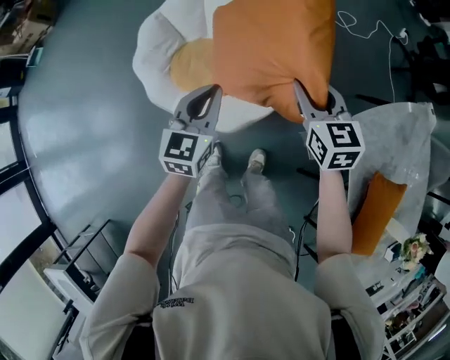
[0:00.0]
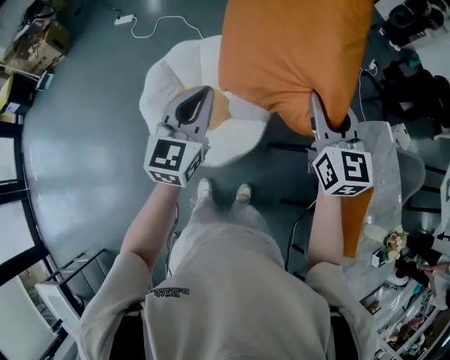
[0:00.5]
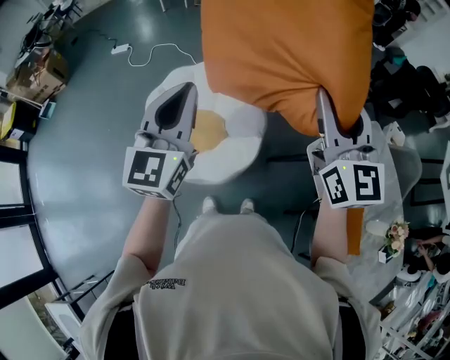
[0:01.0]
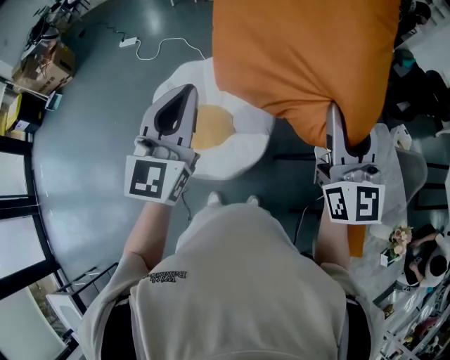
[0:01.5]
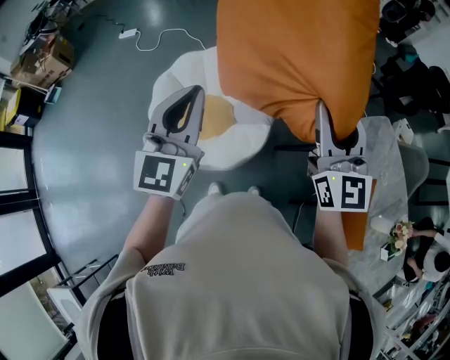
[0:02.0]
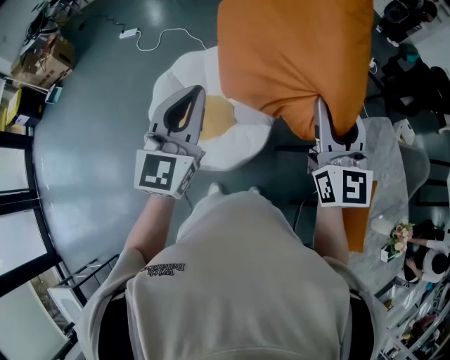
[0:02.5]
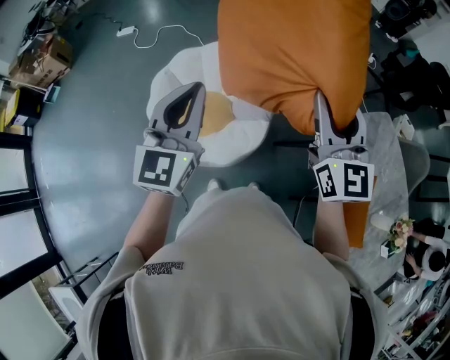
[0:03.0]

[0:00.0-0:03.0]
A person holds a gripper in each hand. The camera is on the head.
0:00.0 to 0:01.5: The grippers both shift upward by some 40 cm. The left gripper swivels roughly 30 degrees. Meanwhile the right gripper tilts its fingers some 40 degrees upward.
0:01.5 to 0:03.0: The right gripper heads downward, covering some 5 cm; the left gripper moves roughly 5 cm.

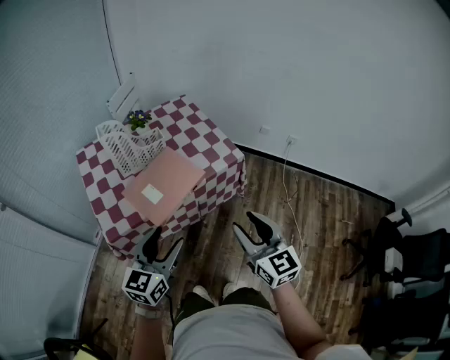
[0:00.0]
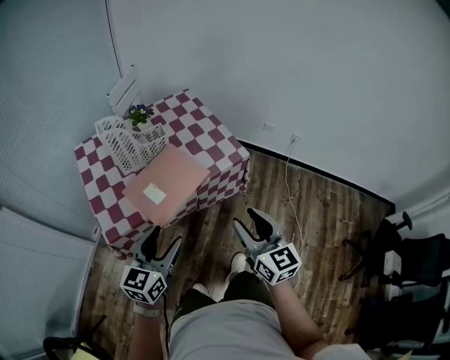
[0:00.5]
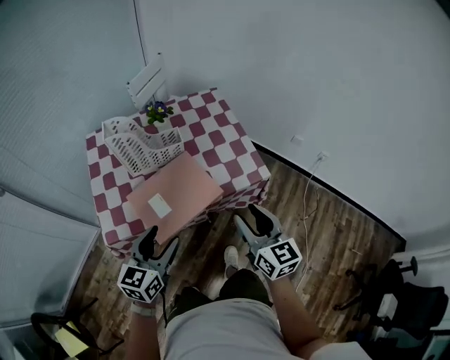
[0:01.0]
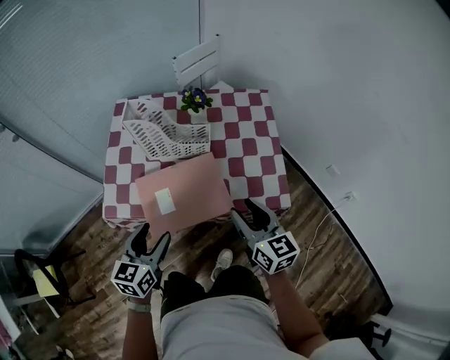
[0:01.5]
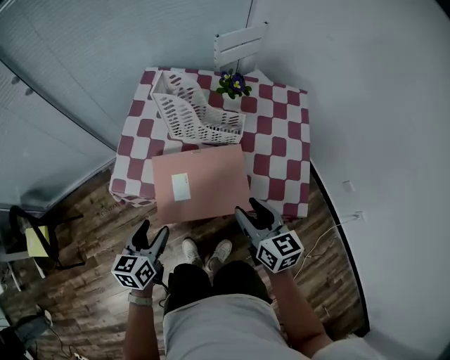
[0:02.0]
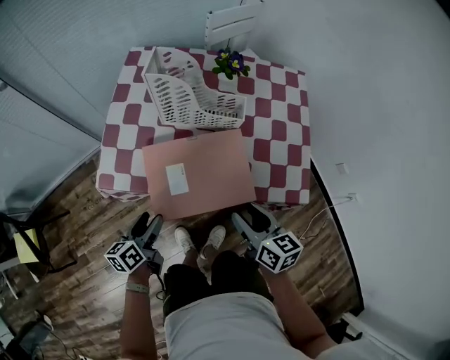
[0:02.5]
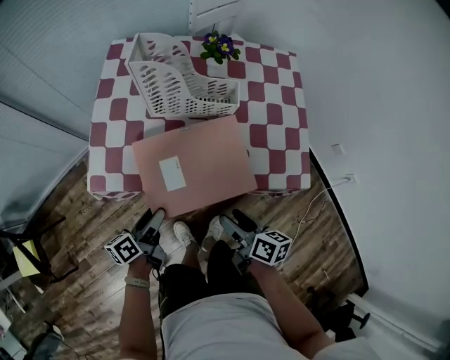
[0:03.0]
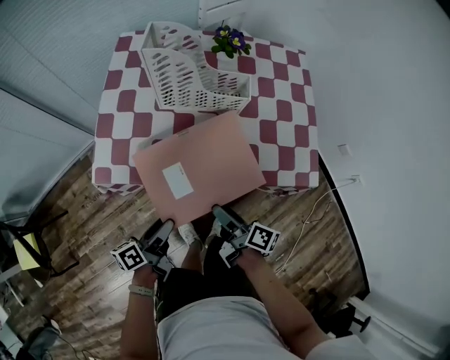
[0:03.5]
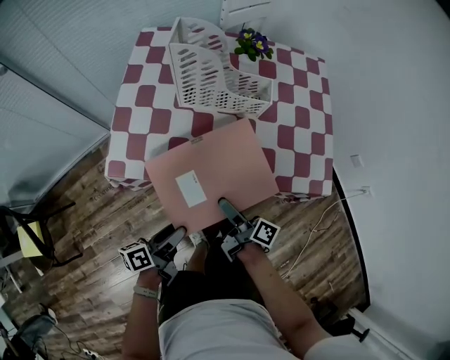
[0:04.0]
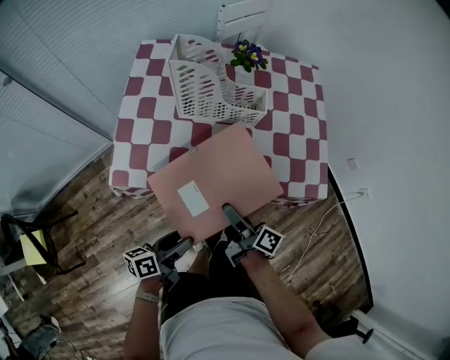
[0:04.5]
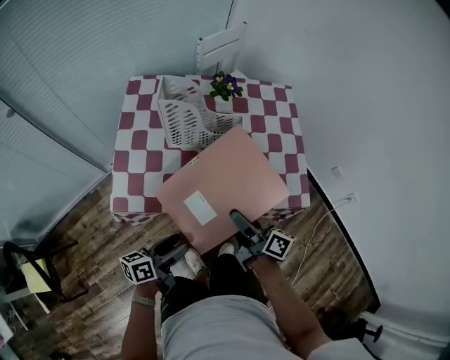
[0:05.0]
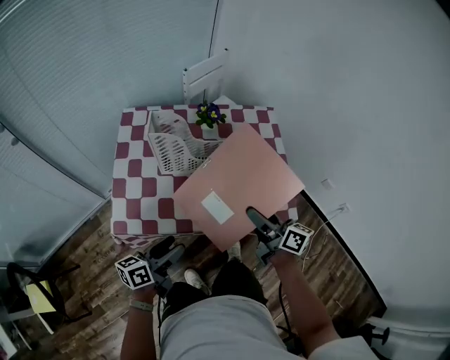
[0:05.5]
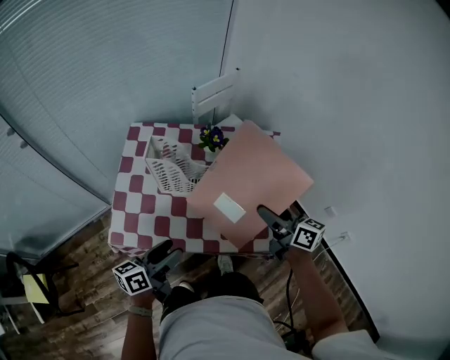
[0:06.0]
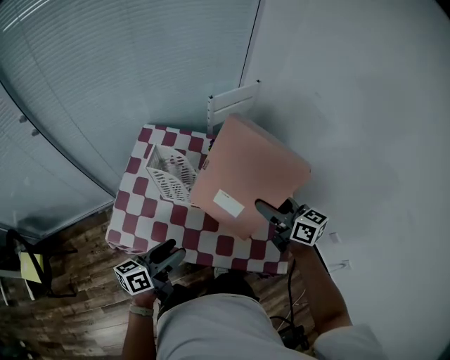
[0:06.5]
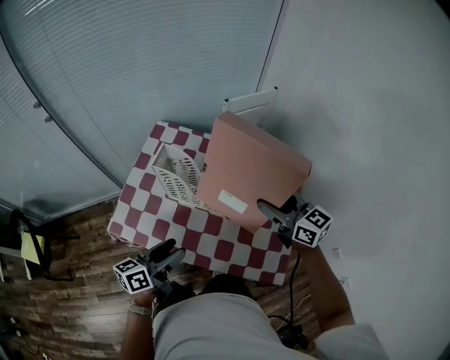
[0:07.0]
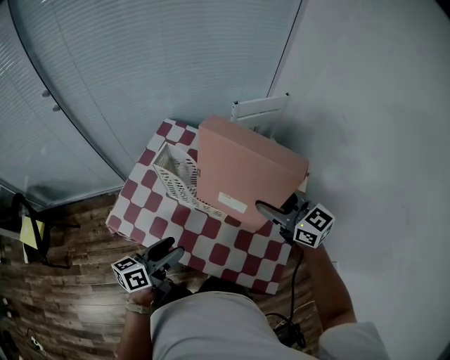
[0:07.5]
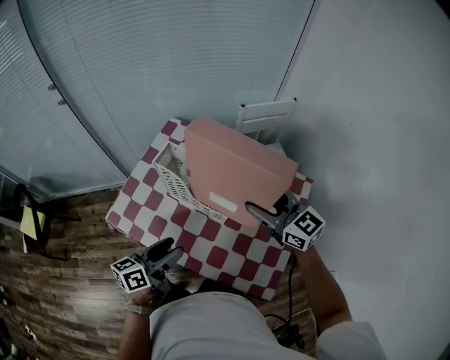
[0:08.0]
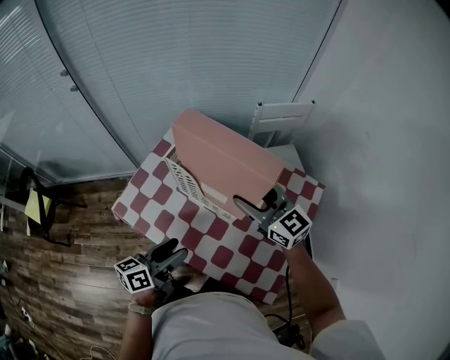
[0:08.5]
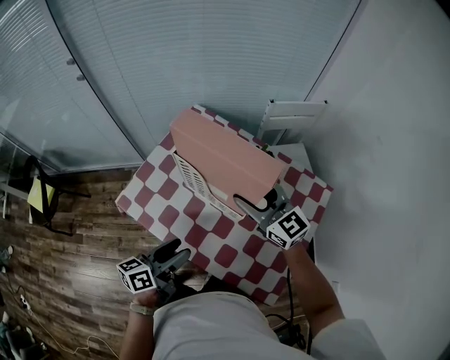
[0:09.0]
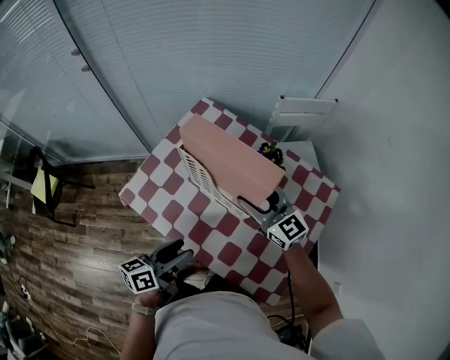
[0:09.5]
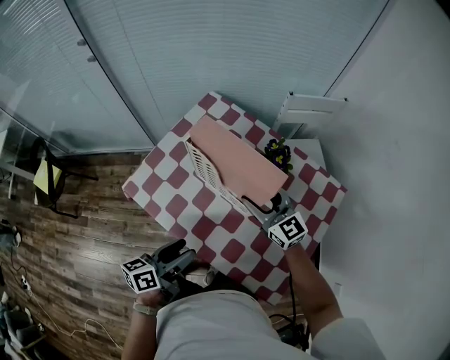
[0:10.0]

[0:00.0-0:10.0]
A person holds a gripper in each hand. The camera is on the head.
0:00.0 to 0:02.0: The right gripper ends up approximately 30 cm from where it was, and turns by some 40 degrees, while the left gripper is displaced downward by some 15 cm, and turns by roughly 60 degrees.
0:02.0 to 0:04.0: The left gripper shifts some 10 cm downward, and turns by some 50 degrees, while the right gripper shifts approximately 20 cm downward and to the left, rotates around the line of its fingers by some 70 degrees, clockwise from behind, and opens its fingers.
0:04.0 to 0:06.0: The right gripper is displaced upward, forward and to the right by approximately 35 cm, and rotates around the line of its fingers by about 50 degrees, counterclockwise from behind. Meanwhile the left gripper heads upward and forward, covering about 25 cm, and rotates approximately 30 degrees.
0:06.0 to 0:08.0: The right gripper ends up about 15 cm from where it was, and rotates about 50 degrees. The left gripper ends up about 10 cm from where it was, and changes its angle by about 20 degrees.
0:08.0 to 0:10.0: The left gripper moves roughly 5 cm. The right gripper is displaced downward and to the left by approximately 15 cm.

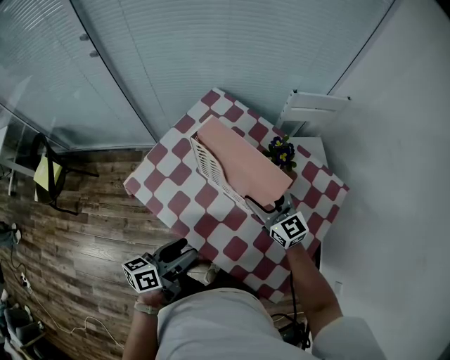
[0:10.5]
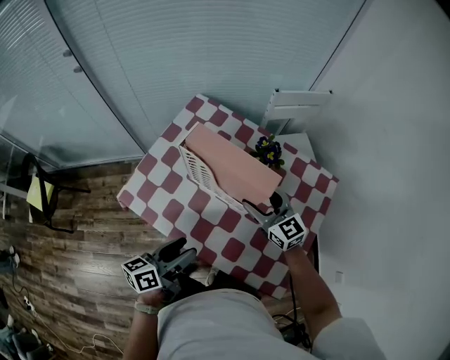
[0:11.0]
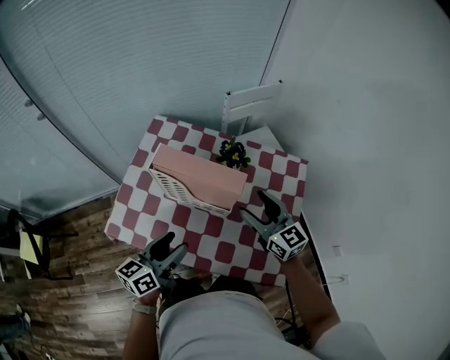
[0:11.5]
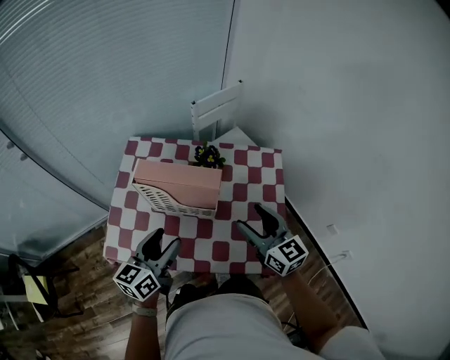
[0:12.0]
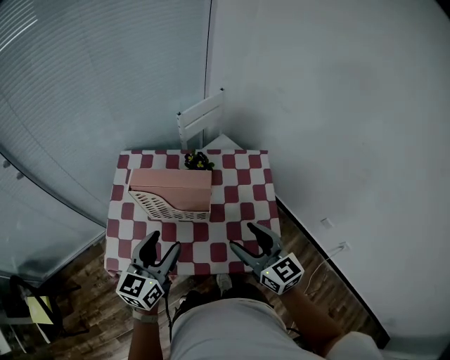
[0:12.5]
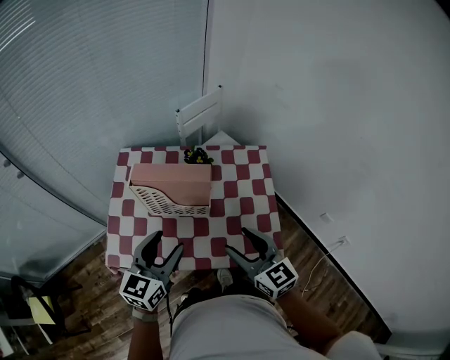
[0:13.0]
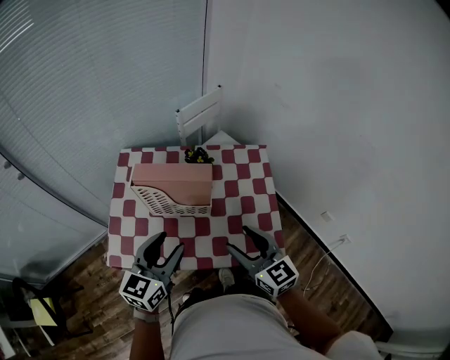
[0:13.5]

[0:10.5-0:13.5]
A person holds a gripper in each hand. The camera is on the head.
0:10.5 to 0:12.0: The right gripper shifts some 20 cm backward, upward and to the right, and swivels roughly 40 degrees, while the left gripper goes roughly 10 cm upward and forward, and rotates roughly 30 degrees.
0:12.0 to 0:13.5: The left gripper shifts by approximately 5 cm. Meanwhile the right gripper heads backward, covering about 10 cm.

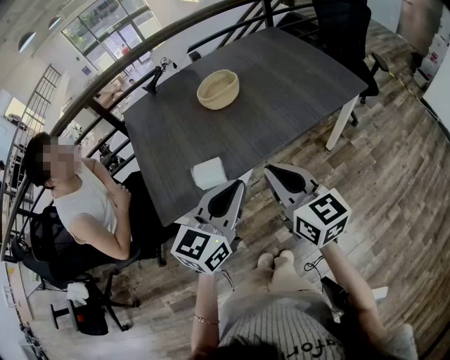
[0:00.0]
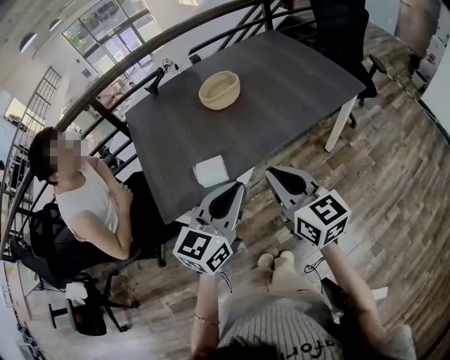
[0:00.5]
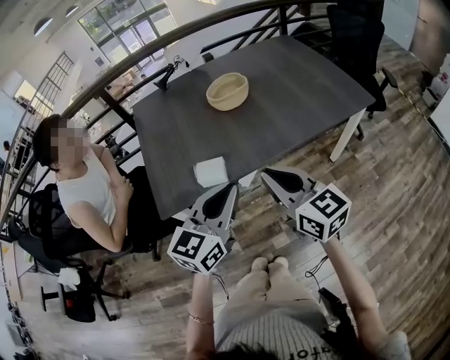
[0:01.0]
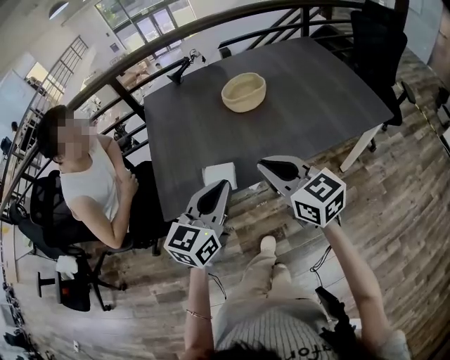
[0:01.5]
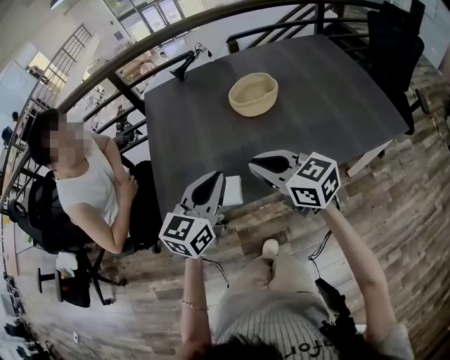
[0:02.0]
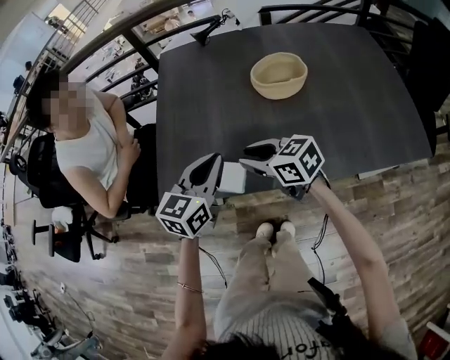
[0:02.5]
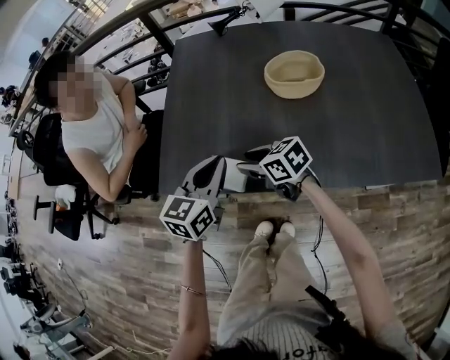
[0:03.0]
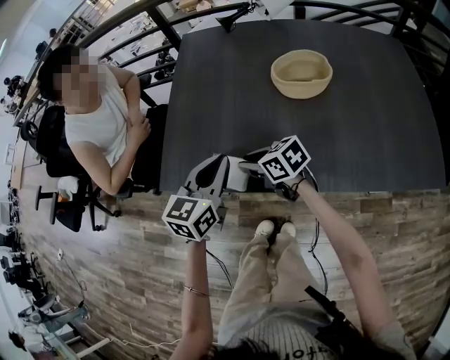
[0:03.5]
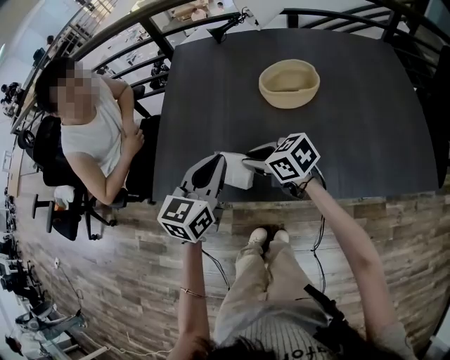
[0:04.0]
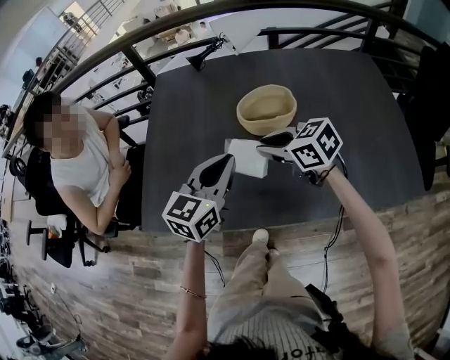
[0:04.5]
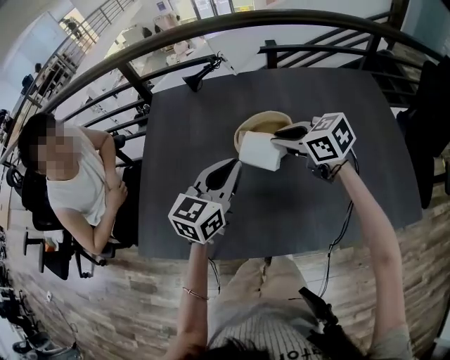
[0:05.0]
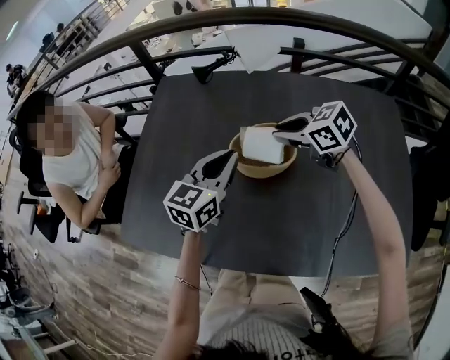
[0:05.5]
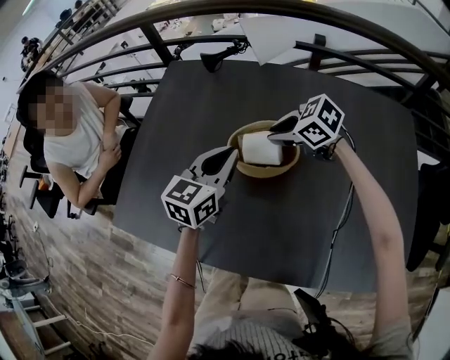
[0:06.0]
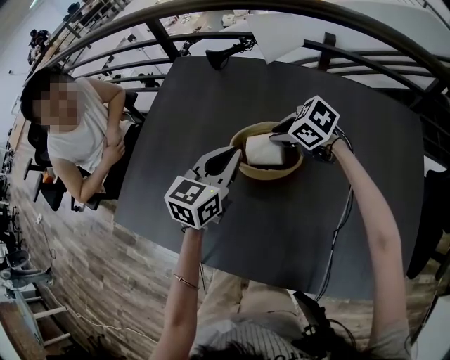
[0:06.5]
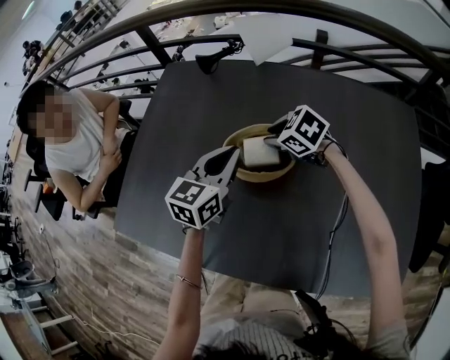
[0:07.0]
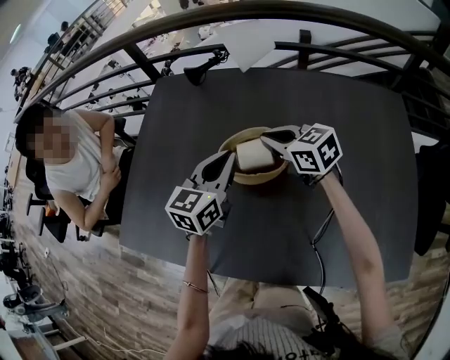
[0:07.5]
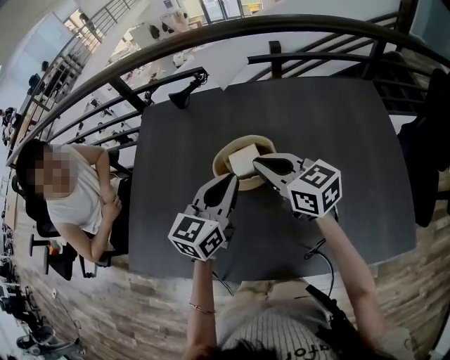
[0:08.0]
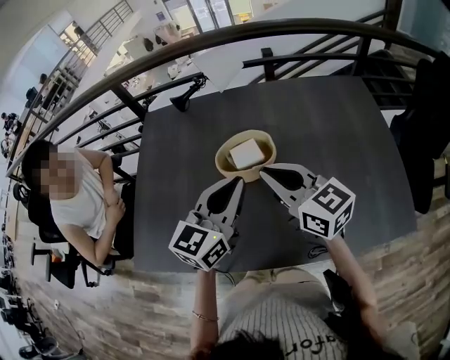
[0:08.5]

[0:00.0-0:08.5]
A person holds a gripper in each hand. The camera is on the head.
0:00.0 to 0:02.0: The left gripper changes place by roughly 15 cm, while the right gripper shifts by about 15 cm, and swivels roughly 40 degrees.
0:02.0 to 0:04.0: The left gripper changes place by approximately 5 cm, and swivels about 20 degrees. The right gripper shifts approximately 15 cm downward, and changes its angle by some 30 degrees.
0:04.0 to 0:06.5: The right gripper goes upward and returns, some 10 cm each way, and changes its angle by some 30 degrees. The left gripper moves roughly 25 cm.
0:06.5 to 0:08.5: The left gripper shifts by approximately 15 cm, and changes its angle by roughly 20 degrees, while the right gripper moves upward, some 20 cm, and tilts its fingers roughly 40 degrees upward.

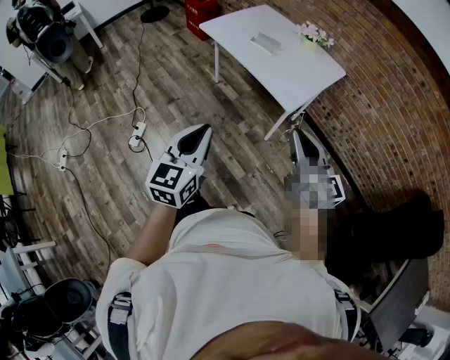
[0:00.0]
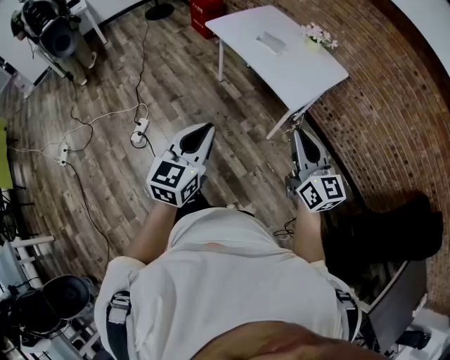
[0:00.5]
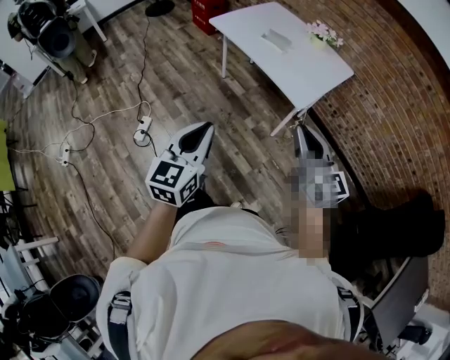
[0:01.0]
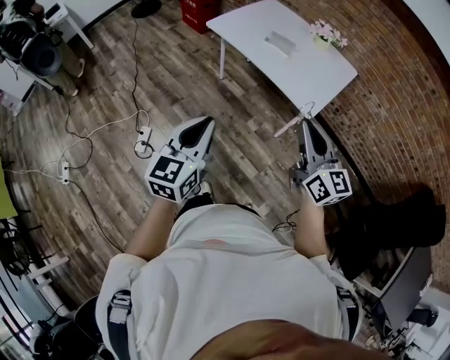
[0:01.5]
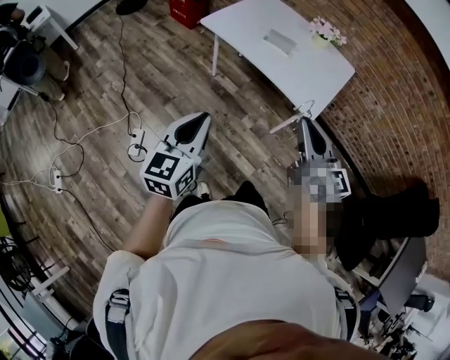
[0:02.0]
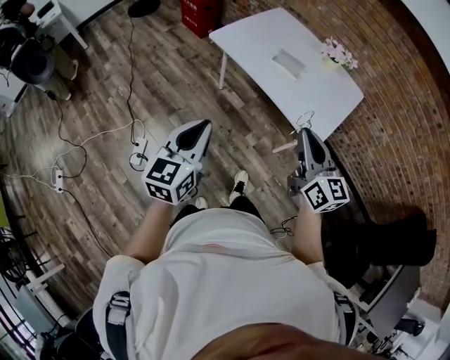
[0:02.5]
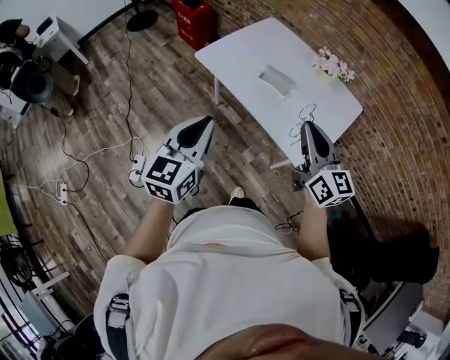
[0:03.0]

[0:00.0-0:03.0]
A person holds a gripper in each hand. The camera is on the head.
0:00.0 to 0:01.5: Both grippers travel together to the left and forward, some 15 cm.
0:01.5 to 0:03.0: Both grippers move forward, some 25 cm.
